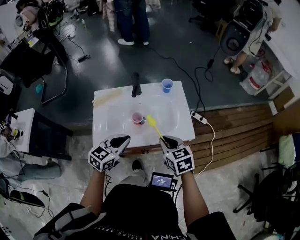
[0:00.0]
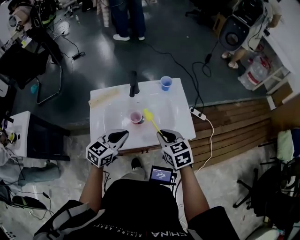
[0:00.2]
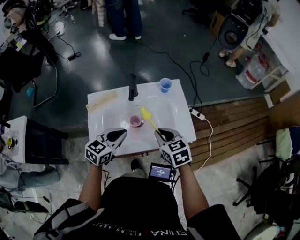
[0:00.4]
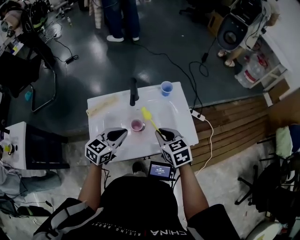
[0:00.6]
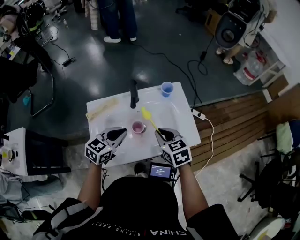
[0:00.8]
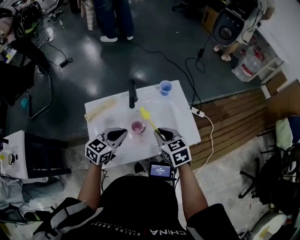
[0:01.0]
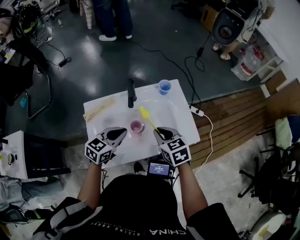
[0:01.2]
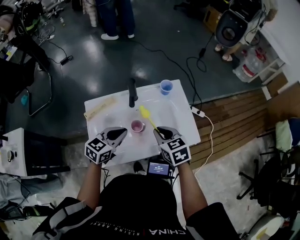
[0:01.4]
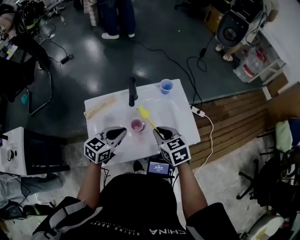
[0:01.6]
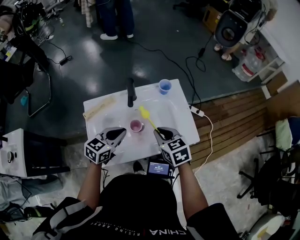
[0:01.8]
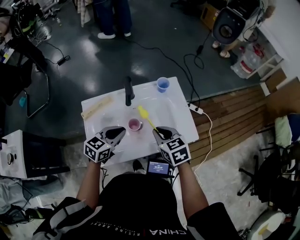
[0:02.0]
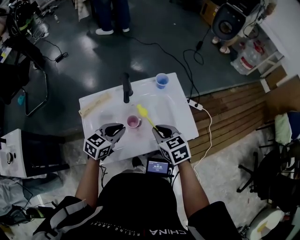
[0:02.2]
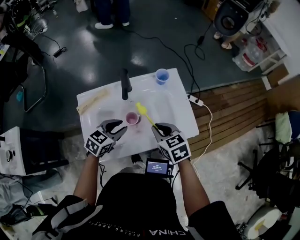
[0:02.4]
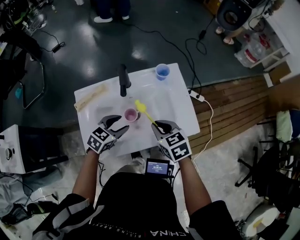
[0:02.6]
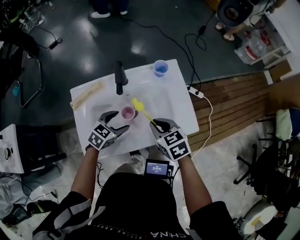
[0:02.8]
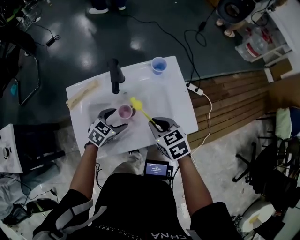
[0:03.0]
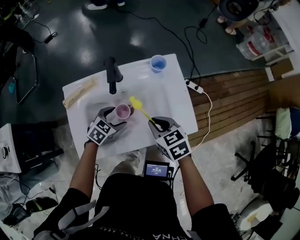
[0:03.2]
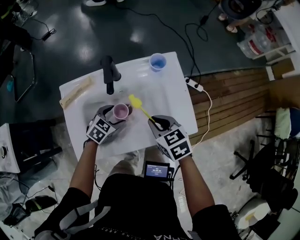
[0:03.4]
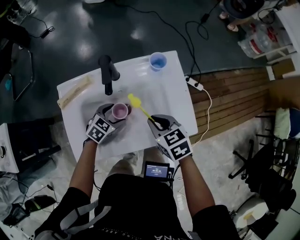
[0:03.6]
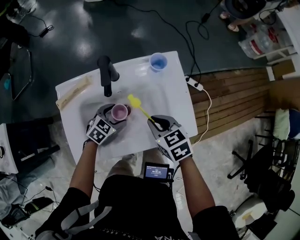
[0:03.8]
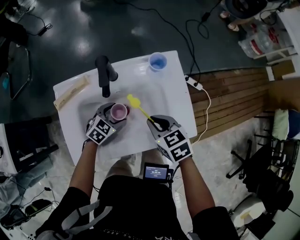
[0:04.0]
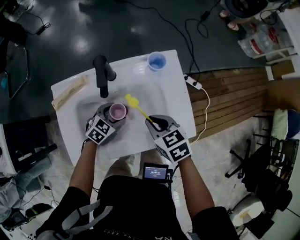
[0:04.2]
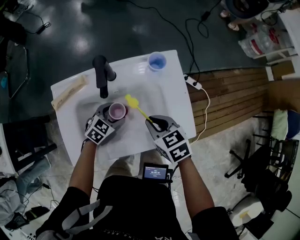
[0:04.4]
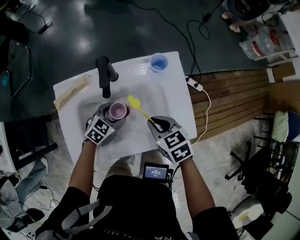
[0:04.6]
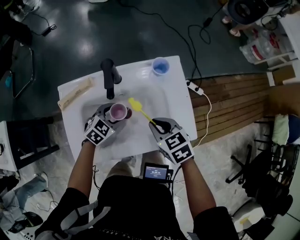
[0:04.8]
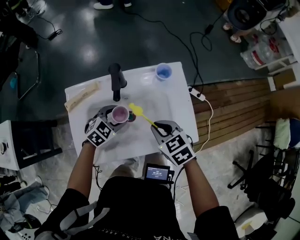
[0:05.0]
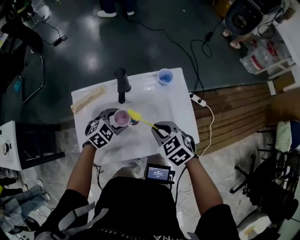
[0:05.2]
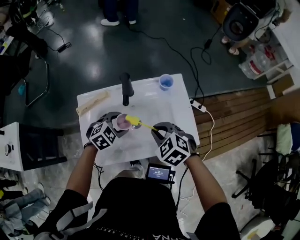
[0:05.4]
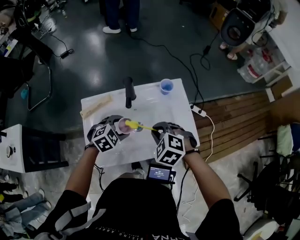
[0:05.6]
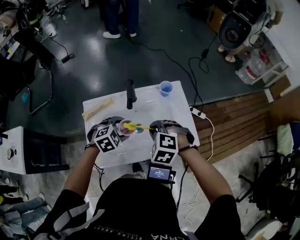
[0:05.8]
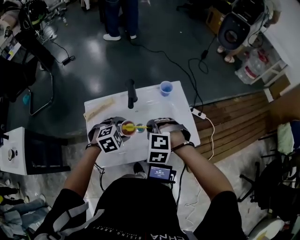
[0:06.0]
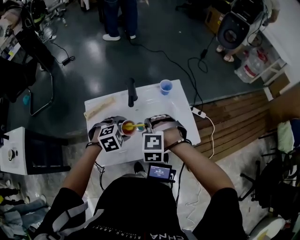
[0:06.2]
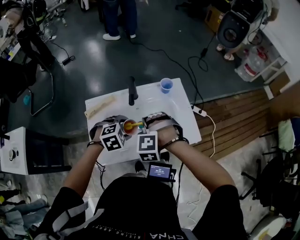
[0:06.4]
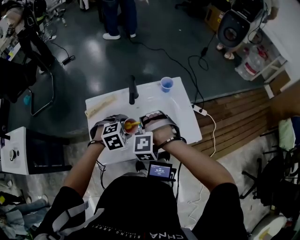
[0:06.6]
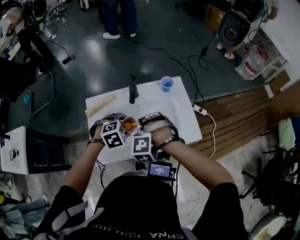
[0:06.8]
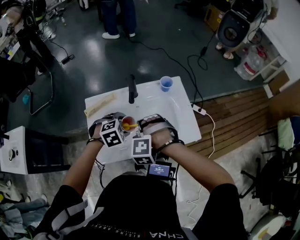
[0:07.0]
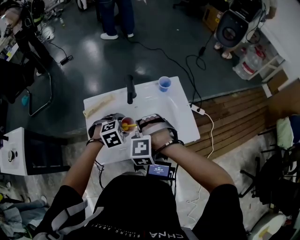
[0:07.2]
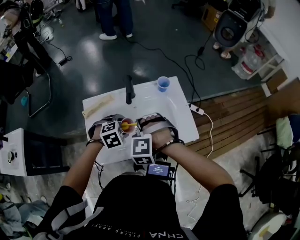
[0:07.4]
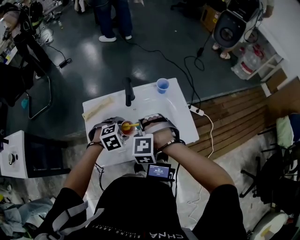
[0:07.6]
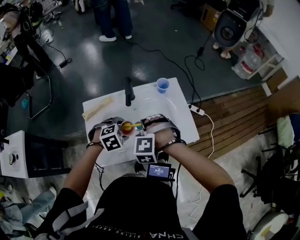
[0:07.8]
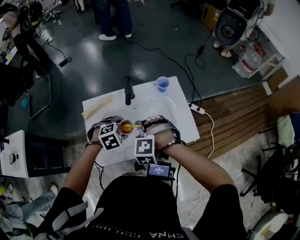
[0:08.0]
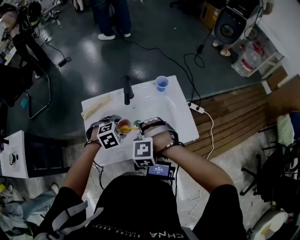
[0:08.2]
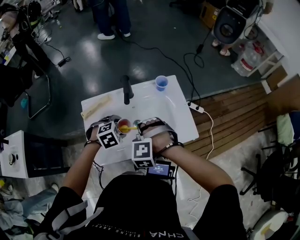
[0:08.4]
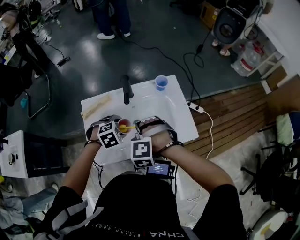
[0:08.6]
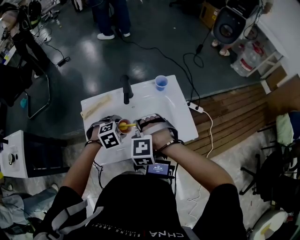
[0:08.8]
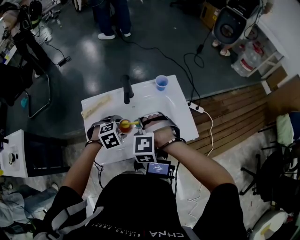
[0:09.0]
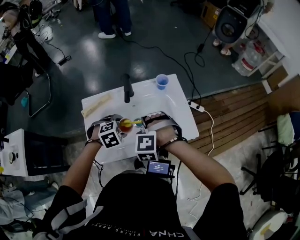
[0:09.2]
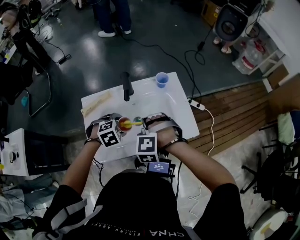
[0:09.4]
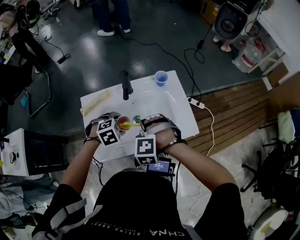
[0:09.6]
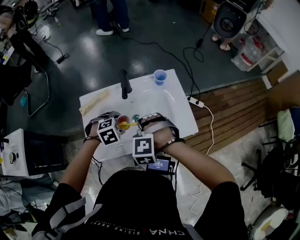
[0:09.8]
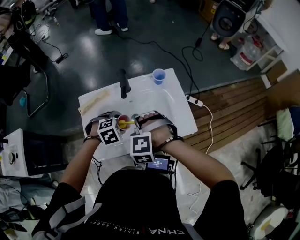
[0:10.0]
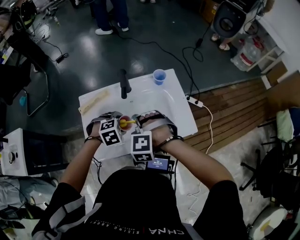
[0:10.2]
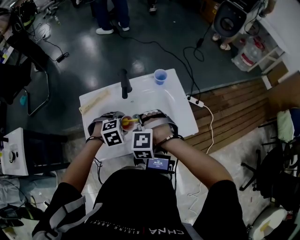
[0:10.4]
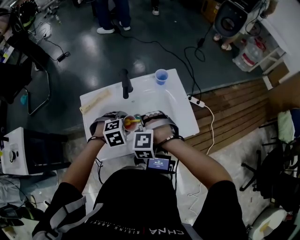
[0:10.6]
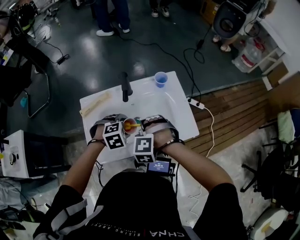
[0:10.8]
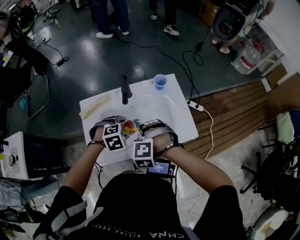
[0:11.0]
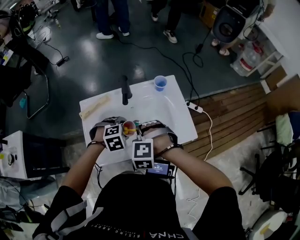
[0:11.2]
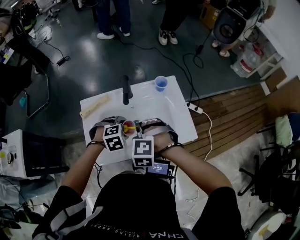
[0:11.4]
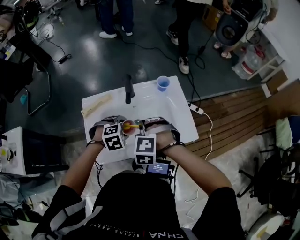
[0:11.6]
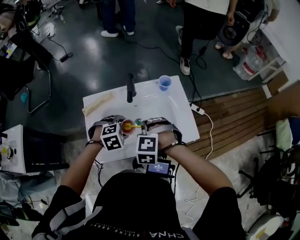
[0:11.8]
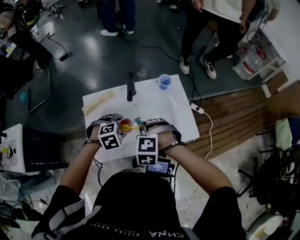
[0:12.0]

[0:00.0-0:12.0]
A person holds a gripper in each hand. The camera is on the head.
0:00.0 to 0:01.6: The grippers both shift forward and to the left by roughly 15 cm.
0:01.6 to 0:03.0: The left gripper travels downward by roughly 15 cm, changes its angle by roughly 30 degrees, and opens up. Meanwhile the right gripper heads downward, covering about 5 cm.
0:03.0 to 0:04.4: The right gripper changes place by approximately 5 cm, while the left gripper goes about 10 cm downward and forward.
0:04.4 to 0:06.0: The left gripper heads upward and backward, covering roughly 20 cm, and rotates approximately 30 degrees; the right gripper shifts approximately 10 cm upward and to the left, and rotates around the line of its fingers by roughly 60 degrees, counterclockwise from behind.
0:07.6 to 0:12.0: The grippers stay close to where they were, moving slightly.

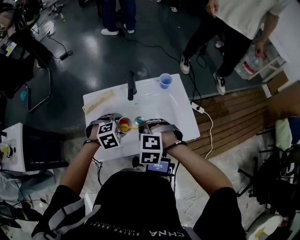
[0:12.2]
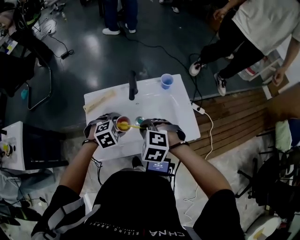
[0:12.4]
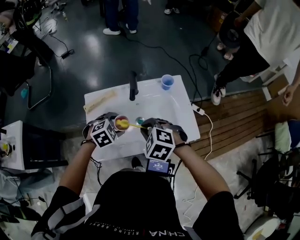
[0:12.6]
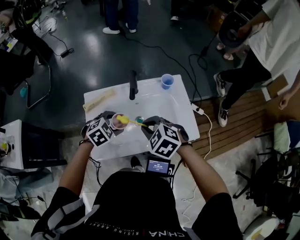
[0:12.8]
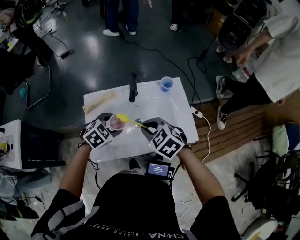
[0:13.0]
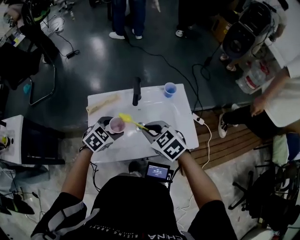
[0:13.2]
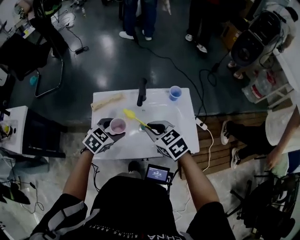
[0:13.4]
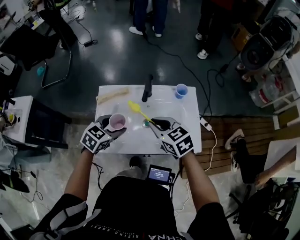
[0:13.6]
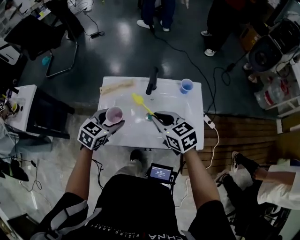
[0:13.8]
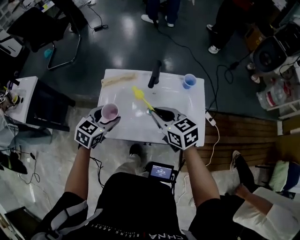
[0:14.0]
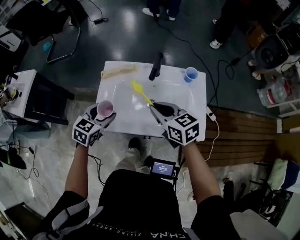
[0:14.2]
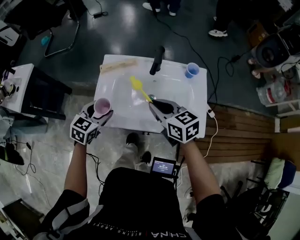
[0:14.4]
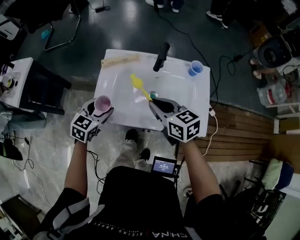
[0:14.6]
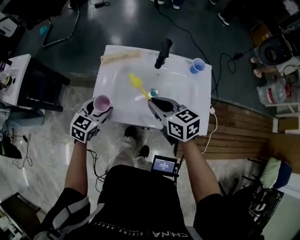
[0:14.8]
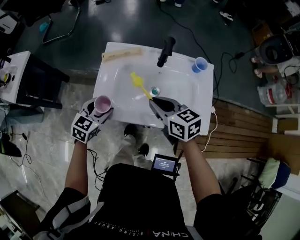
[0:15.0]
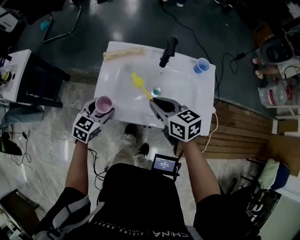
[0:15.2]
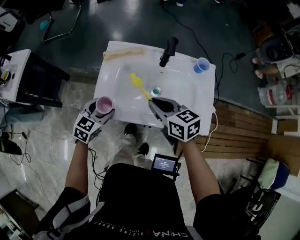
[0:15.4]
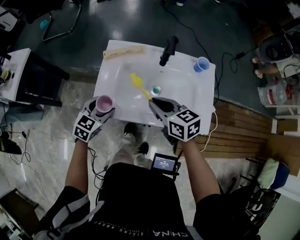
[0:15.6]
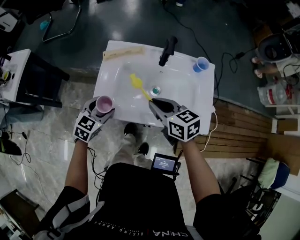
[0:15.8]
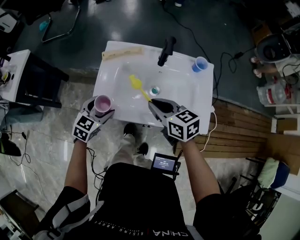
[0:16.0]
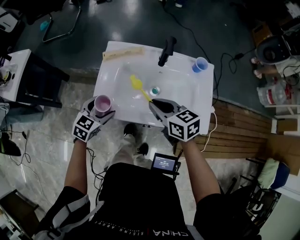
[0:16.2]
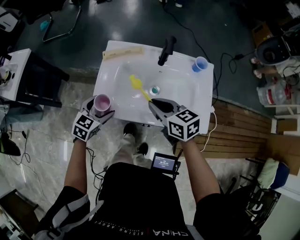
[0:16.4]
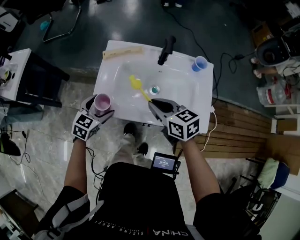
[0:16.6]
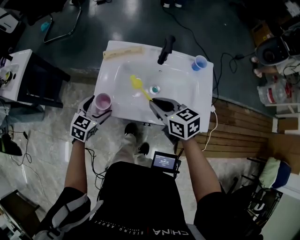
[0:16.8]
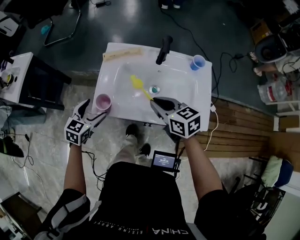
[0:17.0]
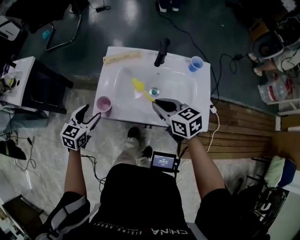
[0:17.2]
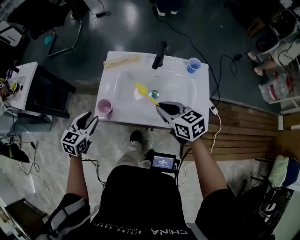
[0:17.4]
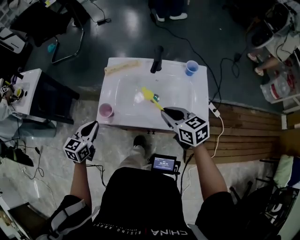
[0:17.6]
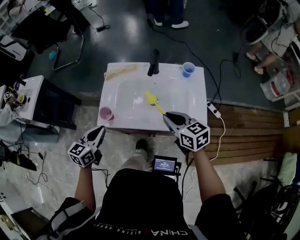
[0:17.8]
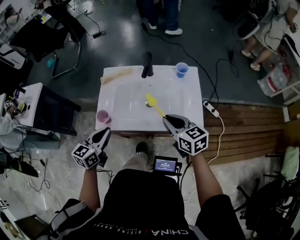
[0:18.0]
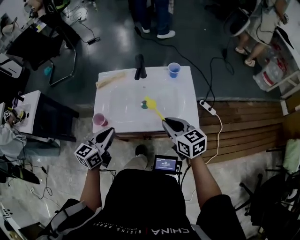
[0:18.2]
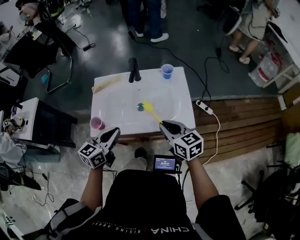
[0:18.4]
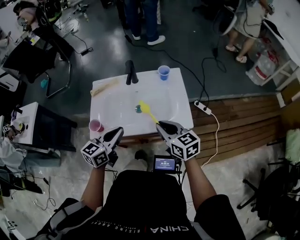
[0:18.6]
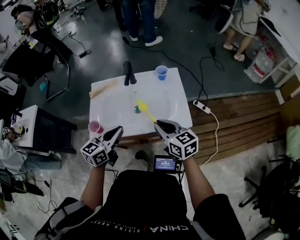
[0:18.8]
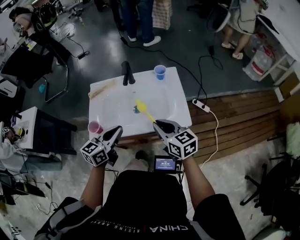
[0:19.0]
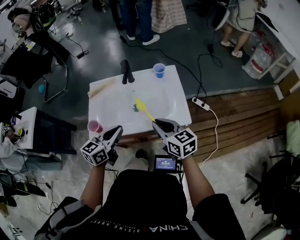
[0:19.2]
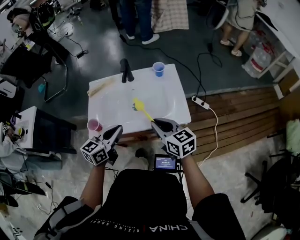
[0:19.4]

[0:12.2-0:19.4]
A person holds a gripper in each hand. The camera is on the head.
0:12.2 to 0:13.6: Both grippers move upward, roughly 5 cm. The left gripper rolls counterclockwise, seen from behind, by about 40 degrees. The right gripper turns by approximately 60 degrees.
0:13.6 to 0:15.0: The right gripper shifts by roughly 5 cm, while the left gripper travels to the left and downward by approximately 15 cm.
0:15.0 to 0:16.6: The grippers make only small movements.
0:16.6 to 0:18.0: The left gripper shifts some 15 cm upward and backward, changes its angle by roughly 30 degrees, and closes its fingers, while the right gripper is displaced to the right and backward by about 15 cm.
0:18.0 to 0:19.4: The right gripper changes place by approximately 5 cm; the left gripper goes roughly 10 cm to the right.

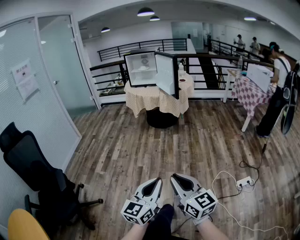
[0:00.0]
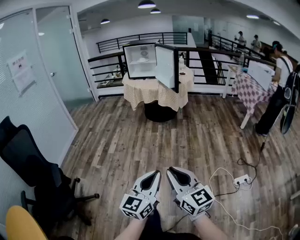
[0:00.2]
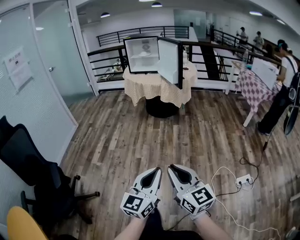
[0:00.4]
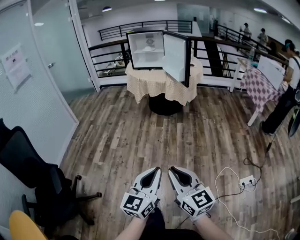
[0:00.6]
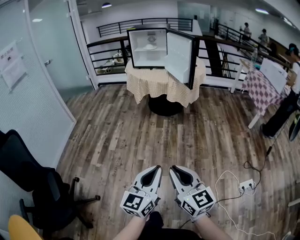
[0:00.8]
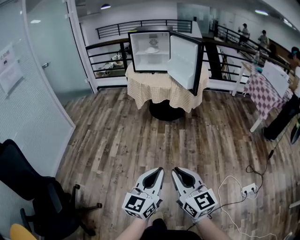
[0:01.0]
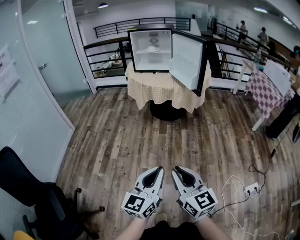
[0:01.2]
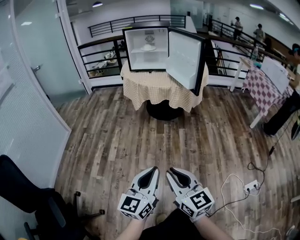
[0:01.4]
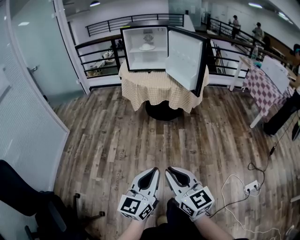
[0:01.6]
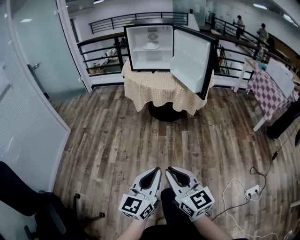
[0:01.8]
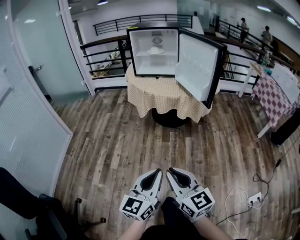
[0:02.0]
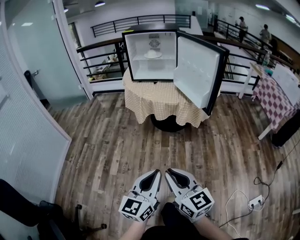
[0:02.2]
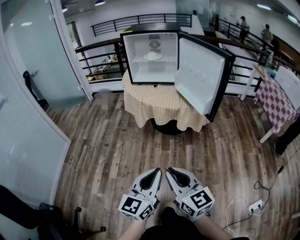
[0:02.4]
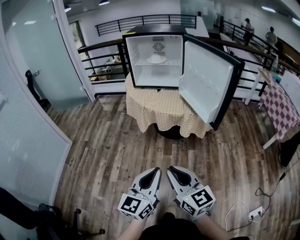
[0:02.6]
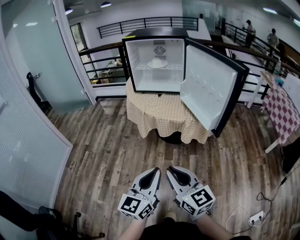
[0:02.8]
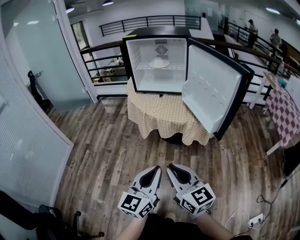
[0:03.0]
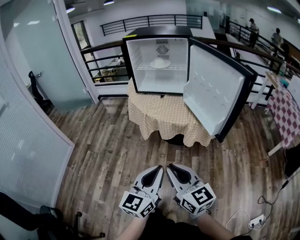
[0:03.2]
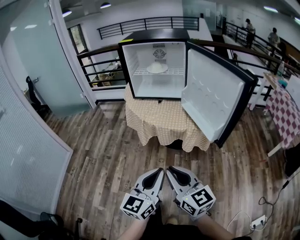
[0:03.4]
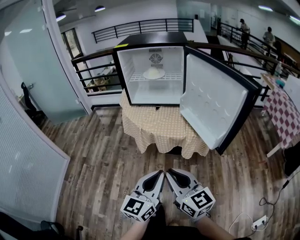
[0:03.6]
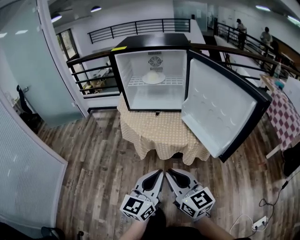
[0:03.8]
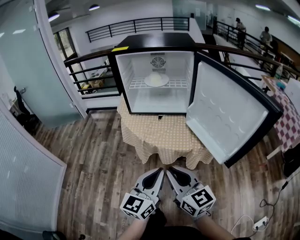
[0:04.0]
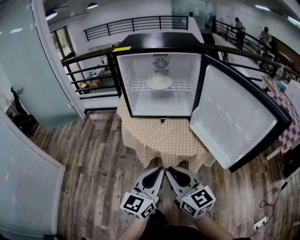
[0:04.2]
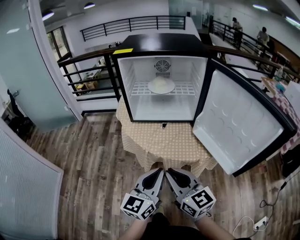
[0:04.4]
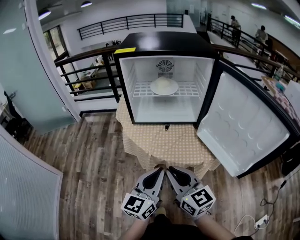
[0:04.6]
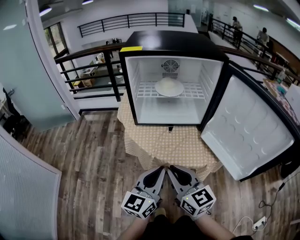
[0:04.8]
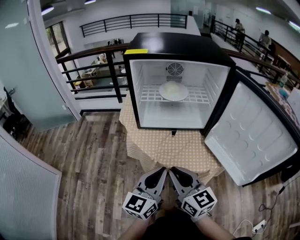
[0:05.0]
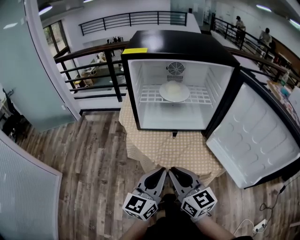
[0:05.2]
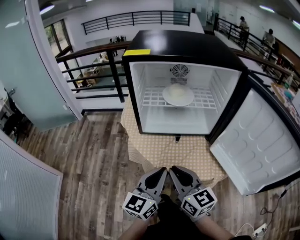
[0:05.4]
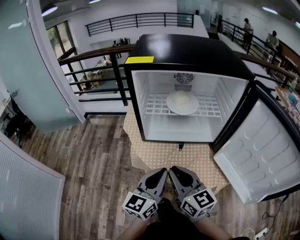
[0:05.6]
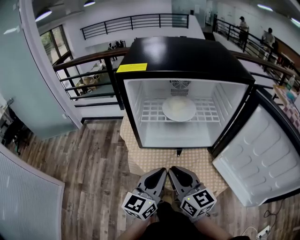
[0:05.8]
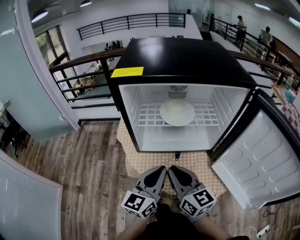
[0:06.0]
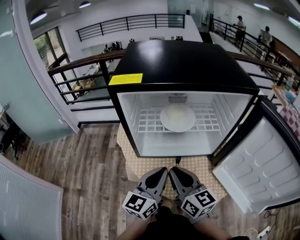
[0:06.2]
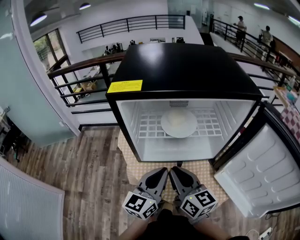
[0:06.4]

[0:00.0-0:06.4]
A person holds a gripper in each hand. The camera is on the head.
0:00.0 to 0:01.6: Both grippers are carried forward, about 40 cm.
0:01.6 to 0:03.2: Both grippers travel together forward, approximately 35 cm.
0:03.2 to 0:04.8: The two grippers go some 30 cm forward.
0:04.8 to 0:06.4: Both grippers move forward, about 20 cm.
